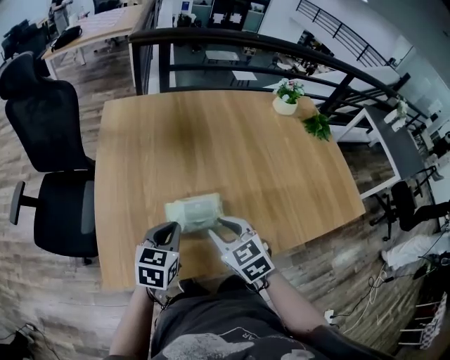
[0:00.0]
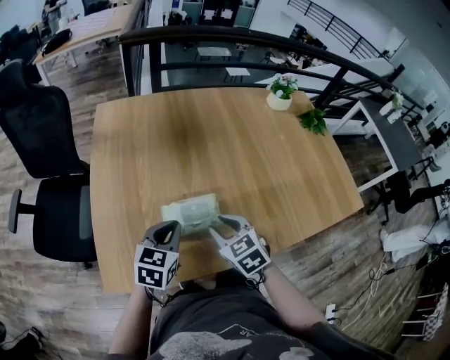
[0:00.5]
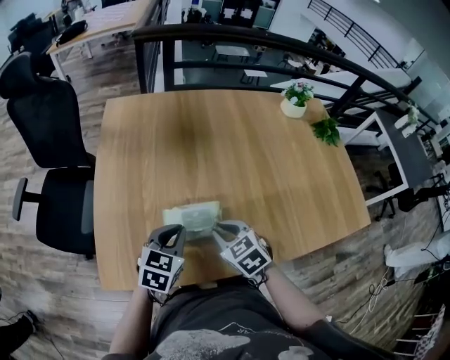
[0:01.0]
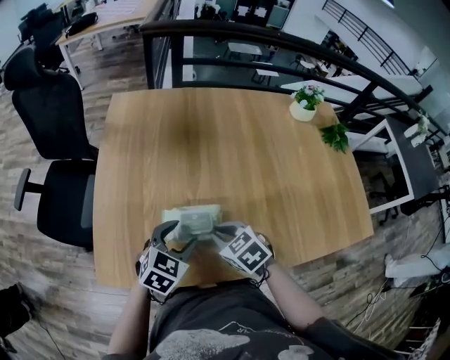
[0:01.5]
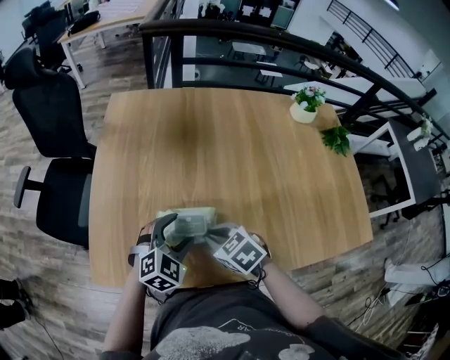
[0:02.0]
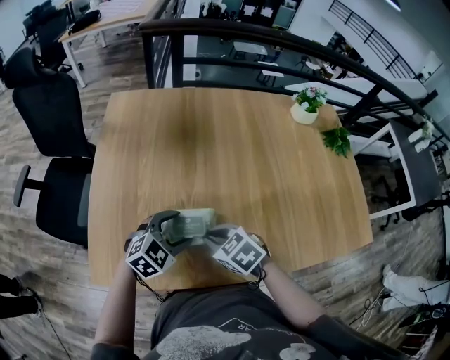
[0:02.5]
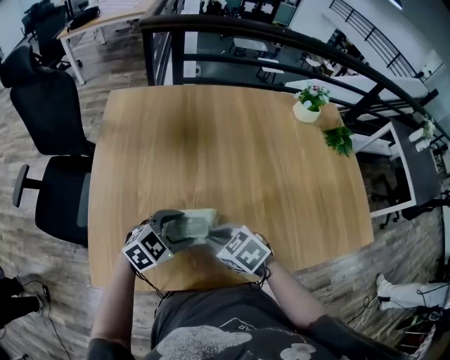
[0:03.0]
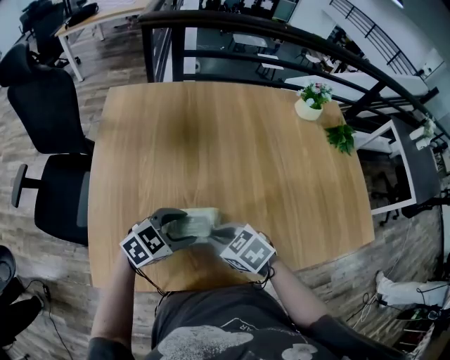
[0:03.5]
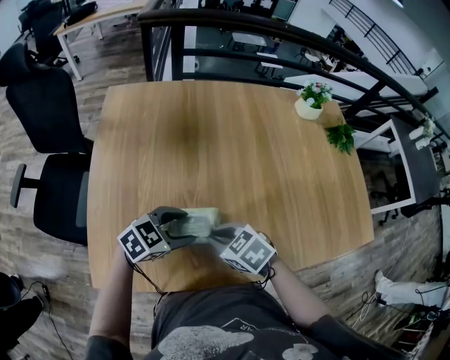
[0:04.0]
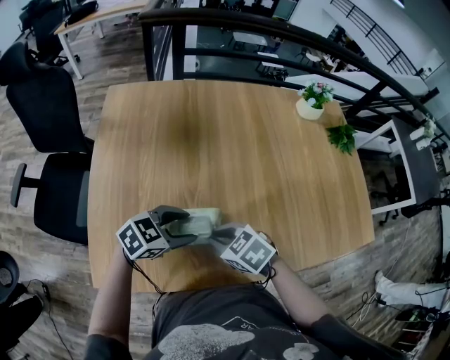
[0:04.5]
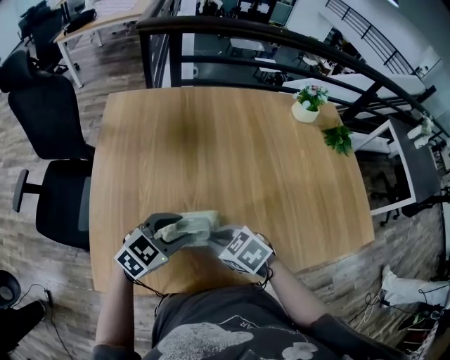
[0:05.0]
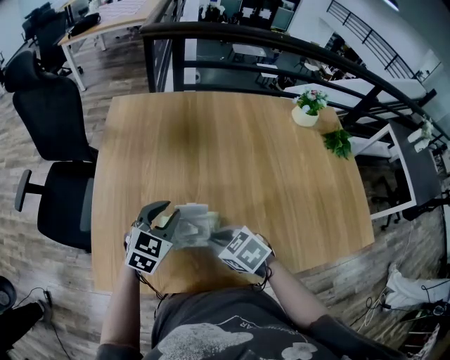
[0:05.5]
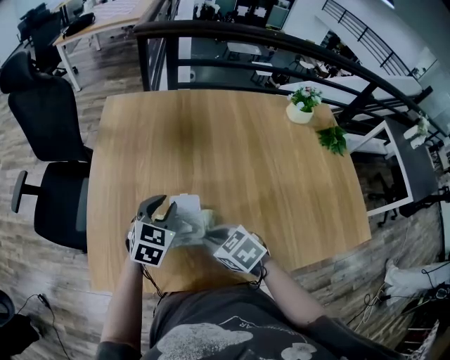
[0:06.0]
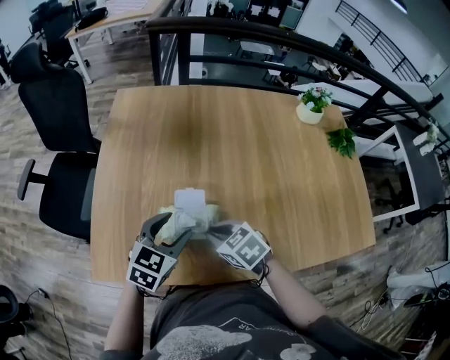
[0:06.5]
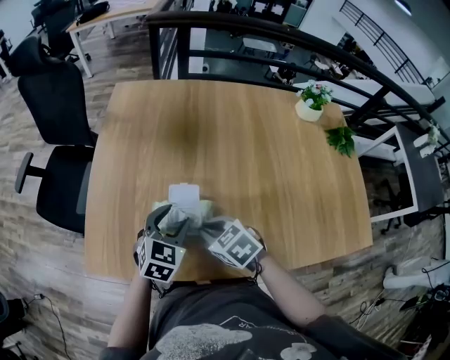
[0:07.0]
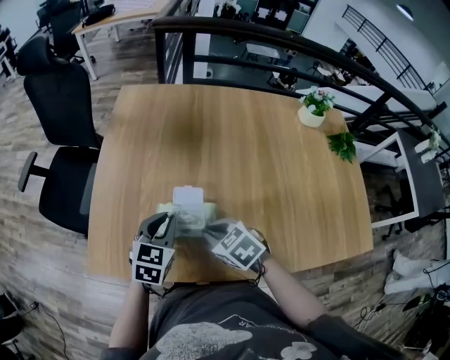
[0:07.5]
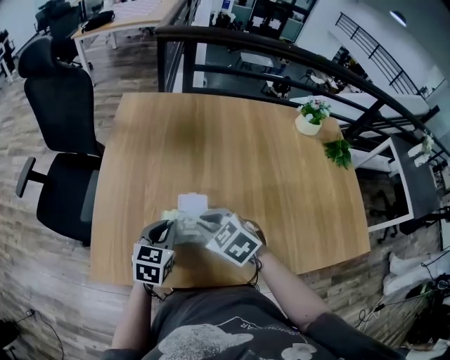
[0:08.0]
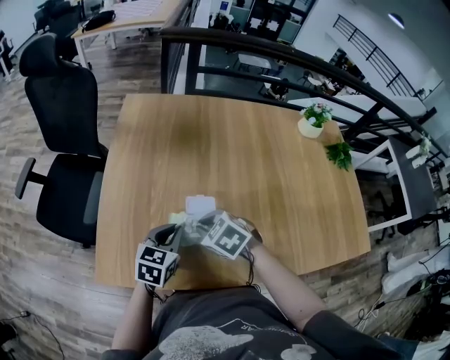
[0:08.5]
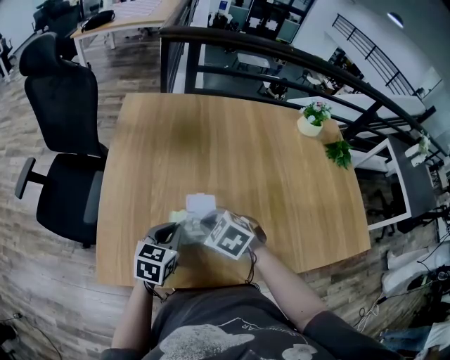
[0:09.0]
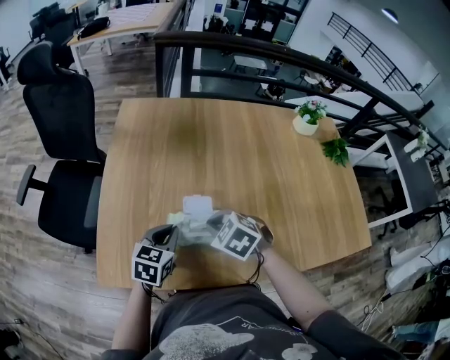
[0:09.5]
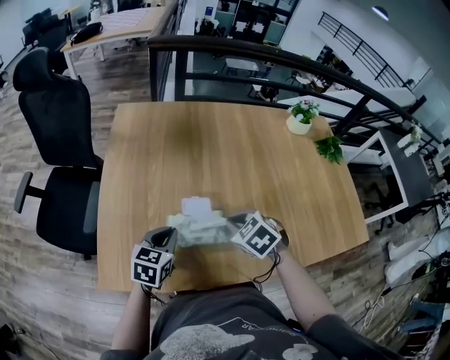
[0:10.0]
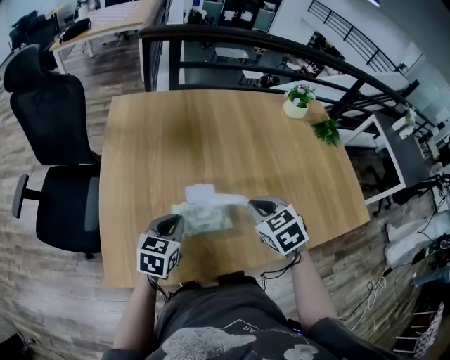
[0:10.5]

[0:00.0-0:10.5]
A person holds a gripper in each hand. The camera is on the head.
0:00.0 to 0:02.0: The right gripper moves downward, some 5 cm, and turns by some 30 degrees; the left gripper heads to the right, covering roughly 5 cm, swivels some 40 degrees, and opens.
0:02.0 to 0:04.0: The left gripper turns by some 40 degrees.
0:04.0 to 0:06.5: The left gripper changes its angle by roughly 30 degrees, and closes, then reopens.
0:06.5 to 0:08.5: The left gripper moves approximately 5 cm, and closes; the right gripper travels to the left by some 5 cm.
0:08.5 to 0:10.5: The right gripper moves roughly 15 cm, and swivels some 30 degrees.

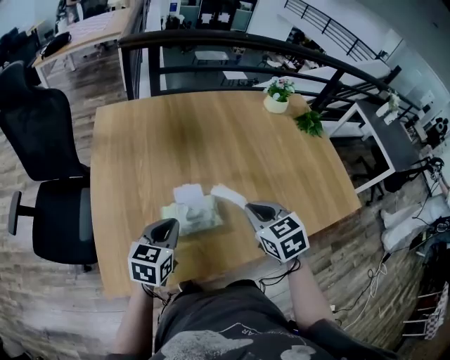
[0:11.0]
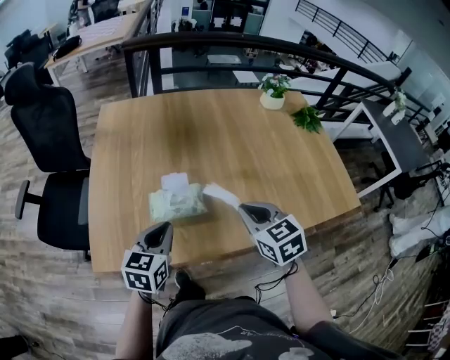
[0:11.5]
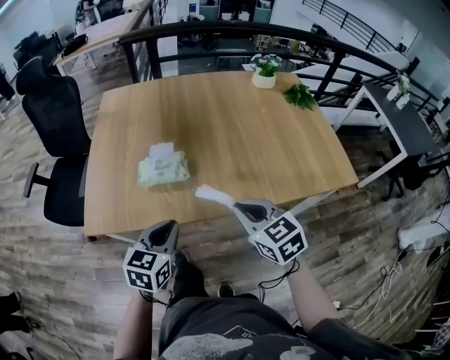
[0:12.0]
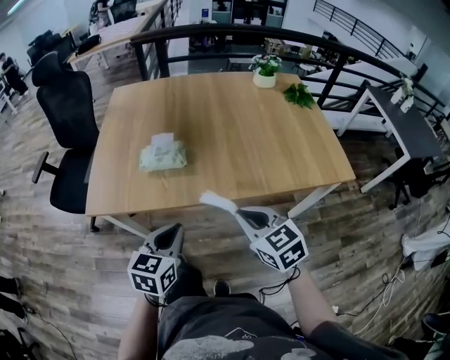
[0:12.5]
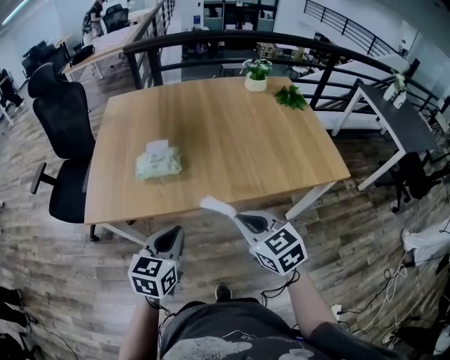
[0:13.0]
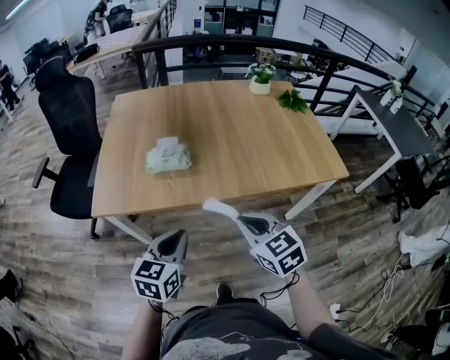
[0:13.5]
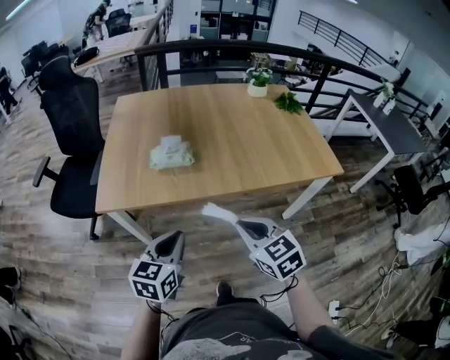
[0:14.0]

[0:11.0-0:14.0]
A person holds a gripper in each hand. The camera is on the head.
0:11.0 to 0:12.5: The grippers both shift backward and to the right by about 30 cm.
0:12.5 to 0:14.0: The two grippers go about 10 cm backward and to the left.

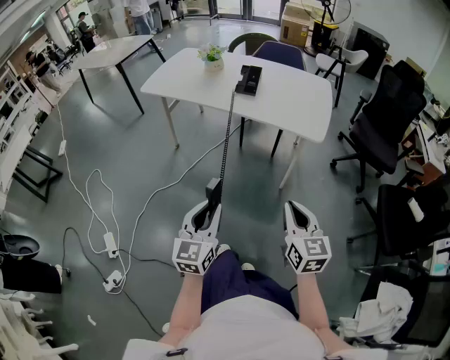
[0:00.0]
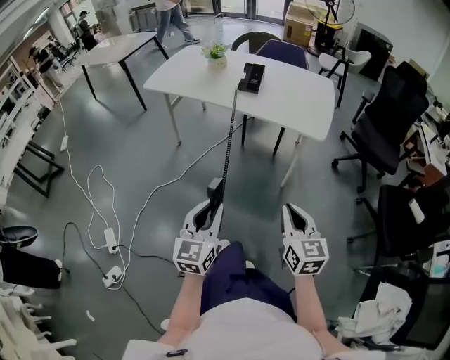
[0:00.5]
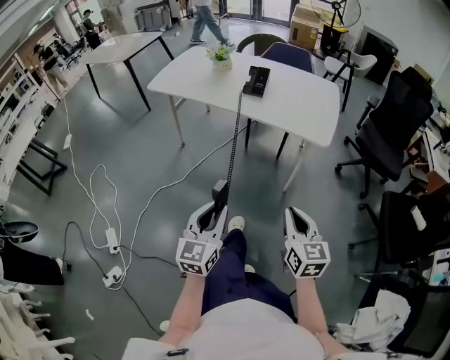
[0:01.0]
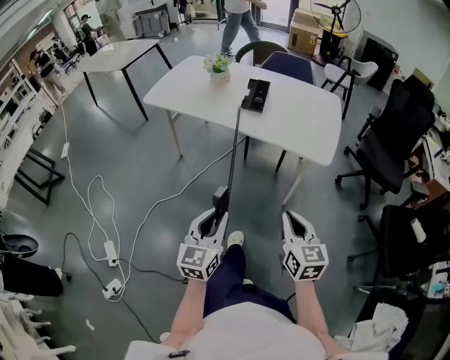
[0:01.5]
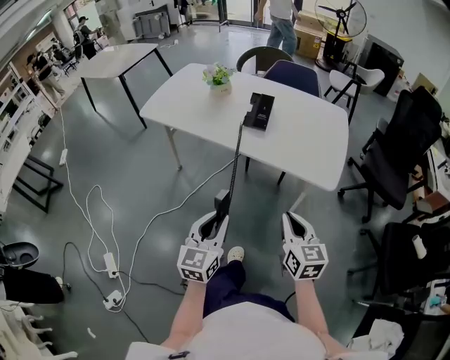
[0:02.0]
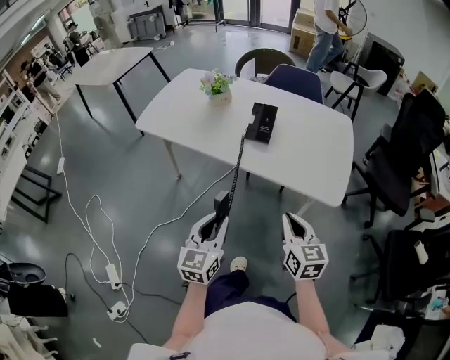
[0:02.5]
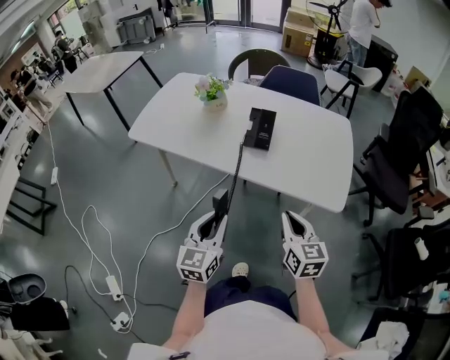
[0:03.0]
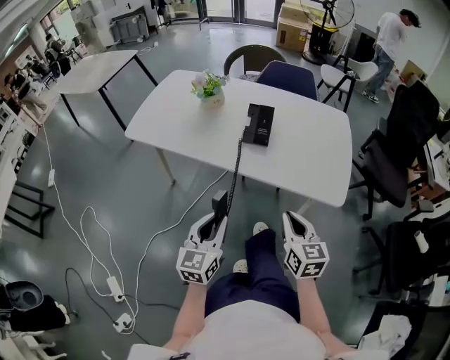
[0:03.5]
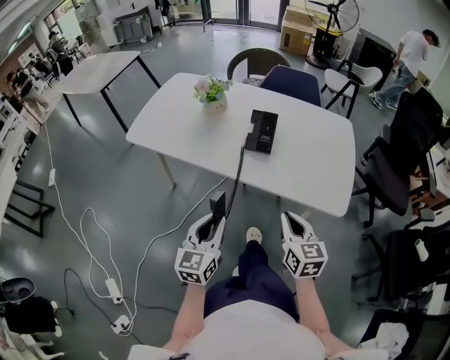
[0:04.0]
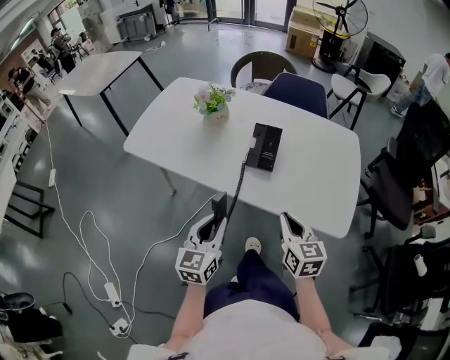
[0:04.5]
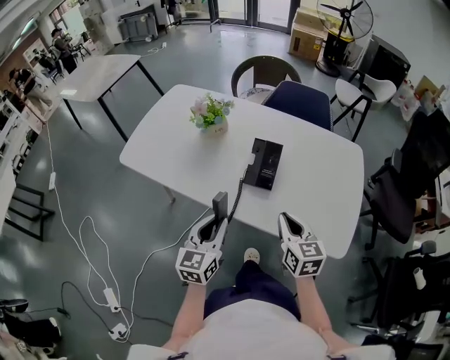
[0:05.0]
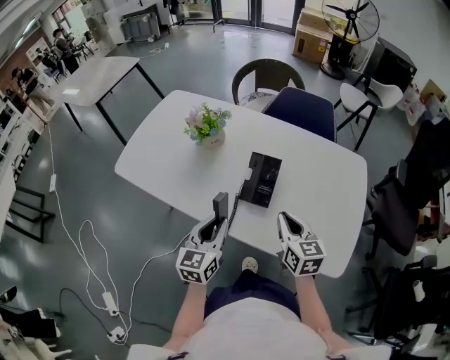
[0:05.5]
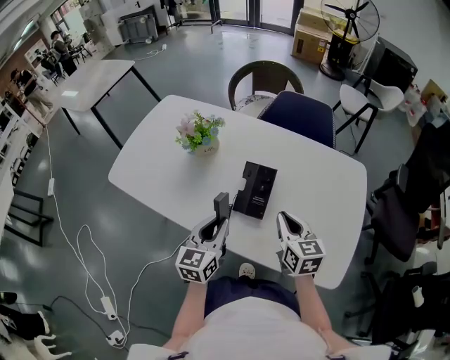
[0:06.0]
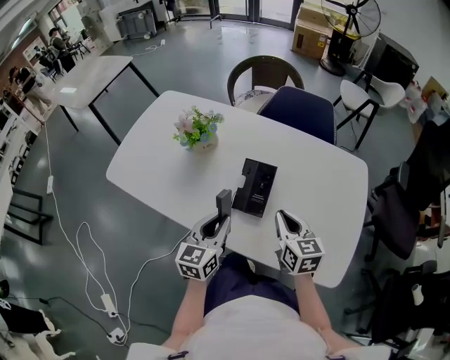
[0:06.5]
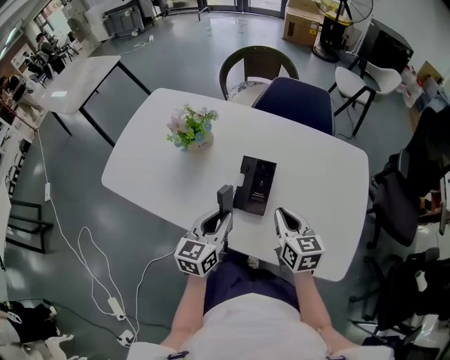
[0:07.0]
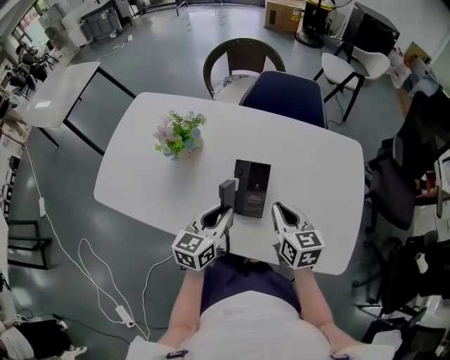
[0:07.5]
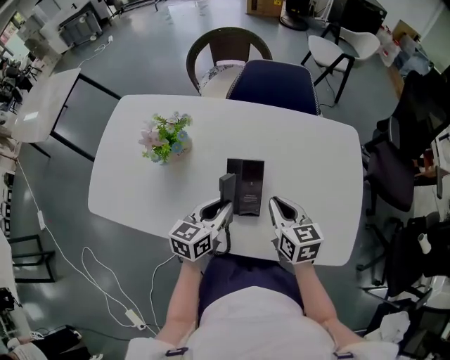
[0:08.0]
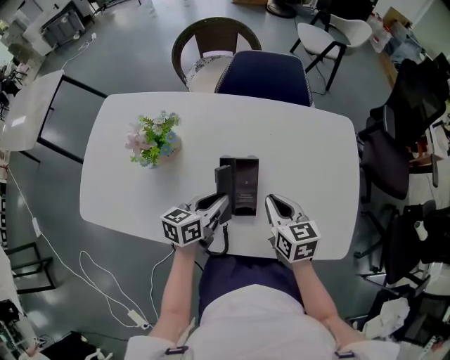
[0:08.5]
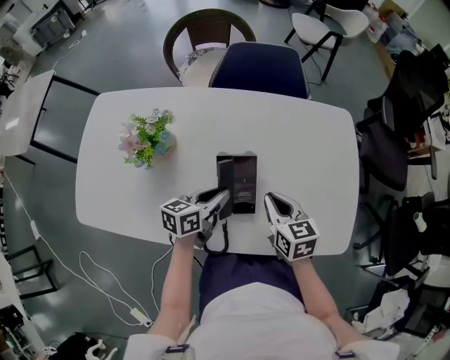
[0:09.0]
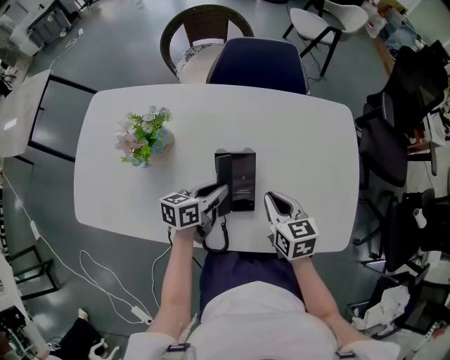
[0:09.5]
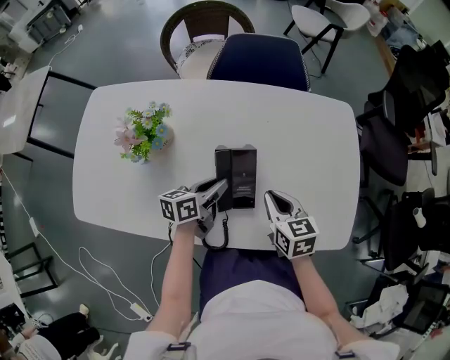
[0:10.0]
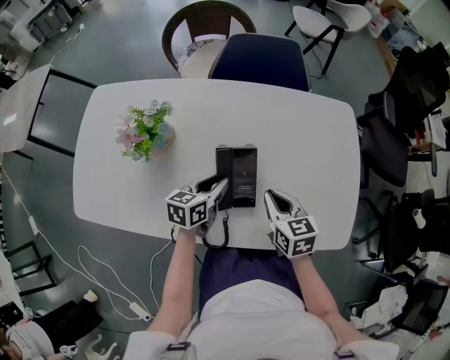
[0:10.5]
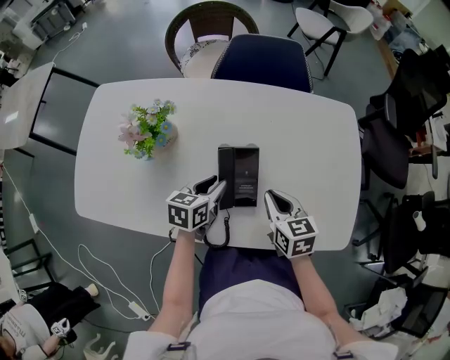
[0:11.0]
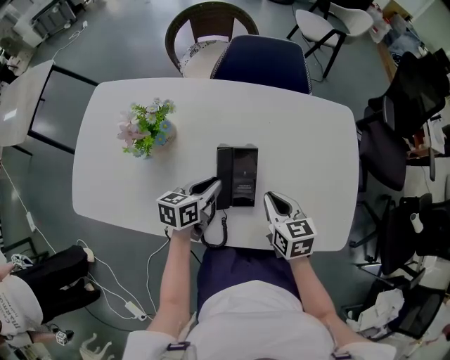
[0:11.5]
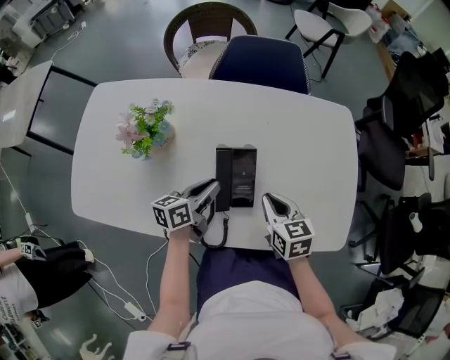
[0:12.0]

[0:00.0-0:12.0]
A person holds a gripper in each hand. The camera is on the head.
0:00.0 to 0:02.0: The two grippers go approximately 20 cm forward.
0:02.0 to 0:04.0: The right gripper shifts approximately 15 cm forward. The left gripper moves forward and to the left, about 15 cm.
0:04.0 to 0:06.0: The two grippers go some 25 cm forward.
0:06.0 to 0:08.0: The left gripper goes some 10 cm forward, and rotates approximately 30 degrees.
0:08.0 to 0:10.0: The left gripper shifts some 10 cm downward and forward, and swivels some 30 degrees.

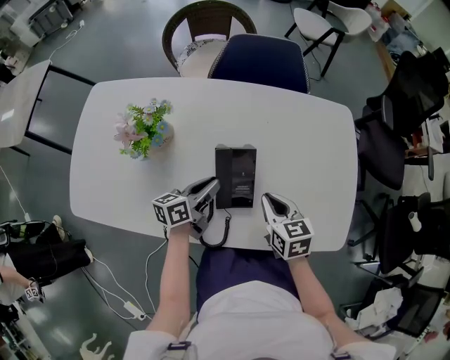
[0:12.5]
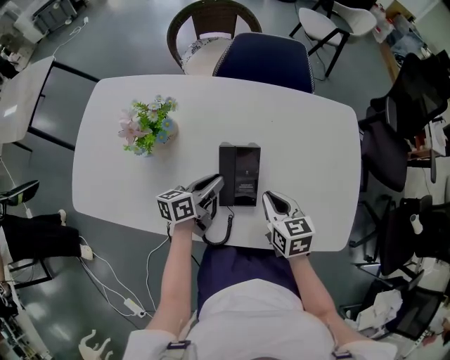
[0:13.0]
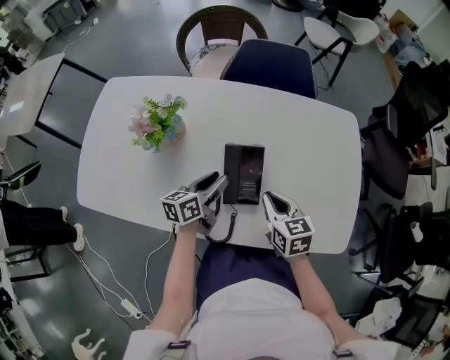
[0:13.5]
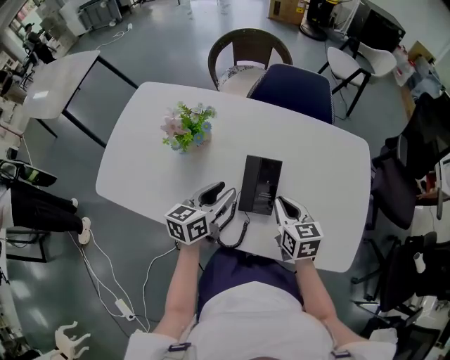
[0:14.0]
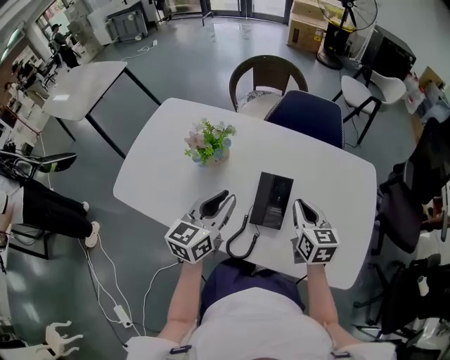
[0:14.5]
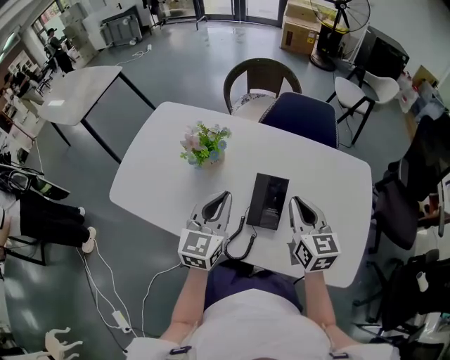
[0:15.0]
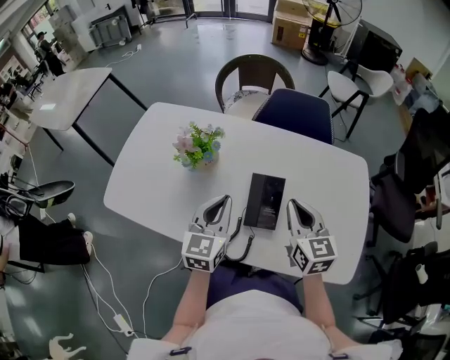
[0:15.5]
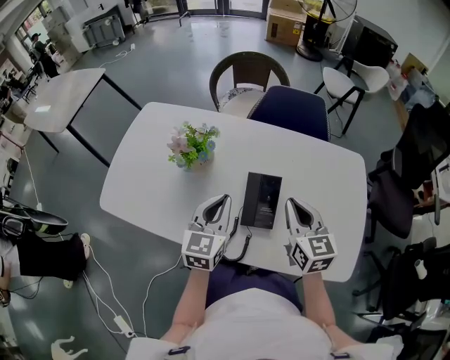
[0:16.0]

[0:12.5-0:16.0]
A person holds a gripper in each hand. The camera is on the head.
0:12.5 to 0:14.5: The left gripper shifts roughly 15 cm upward, and swivels some 40 degrees. The right gripper is displaced upward by approximately 10 cm.
0:14.5 to 0:16.0: The right gripper moves upward, approximately 5 cm.
